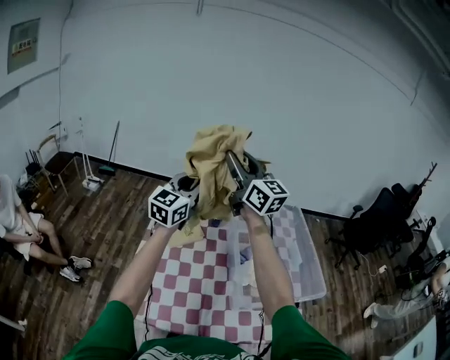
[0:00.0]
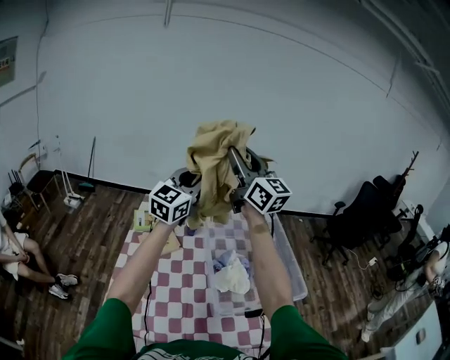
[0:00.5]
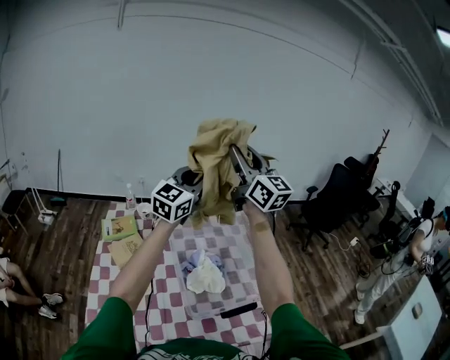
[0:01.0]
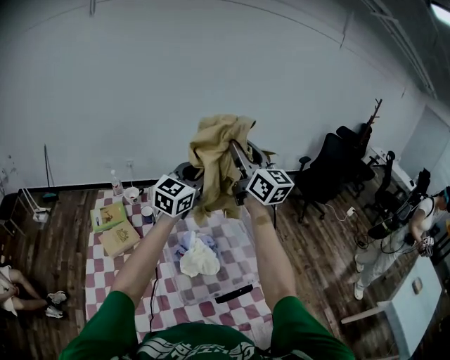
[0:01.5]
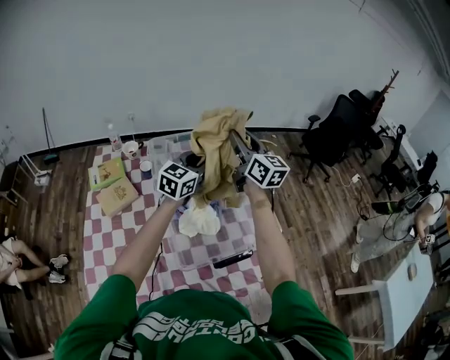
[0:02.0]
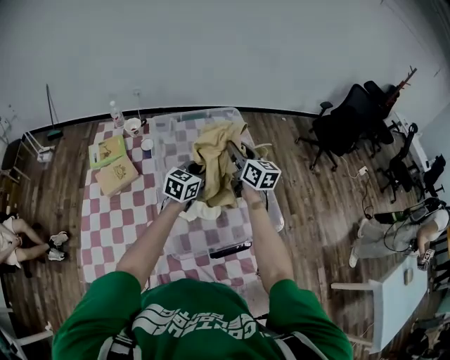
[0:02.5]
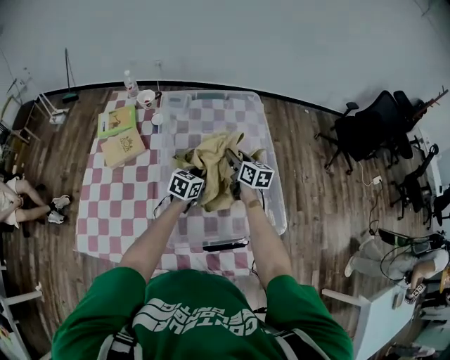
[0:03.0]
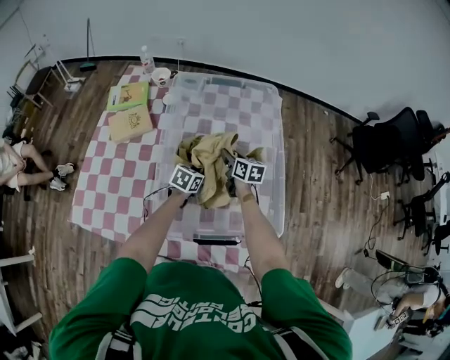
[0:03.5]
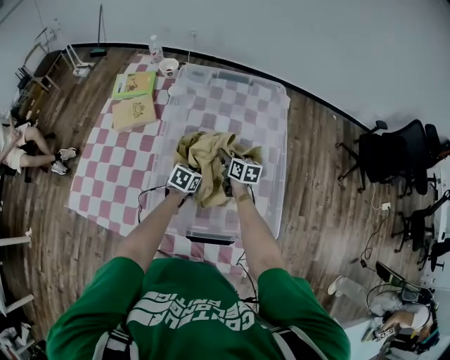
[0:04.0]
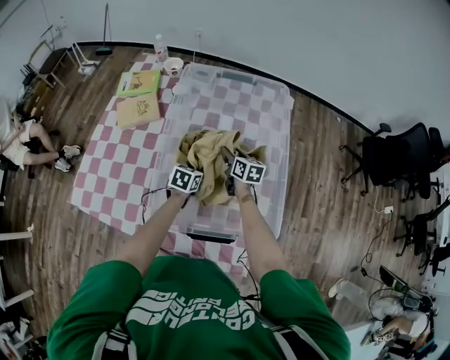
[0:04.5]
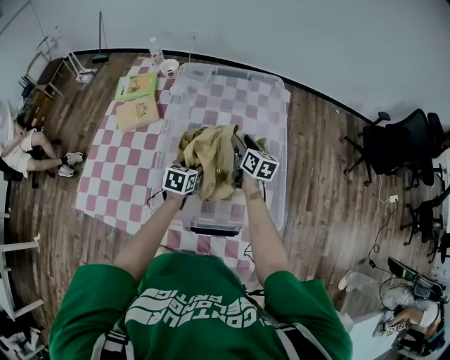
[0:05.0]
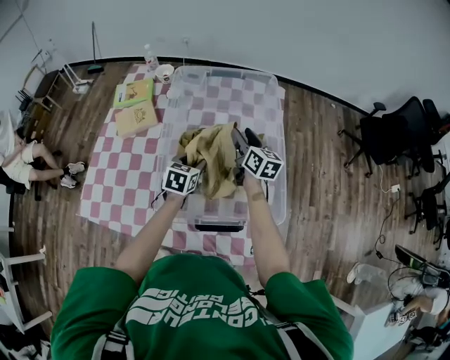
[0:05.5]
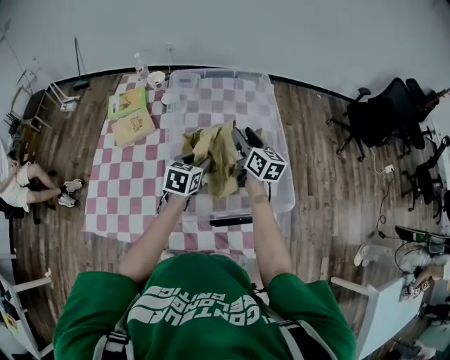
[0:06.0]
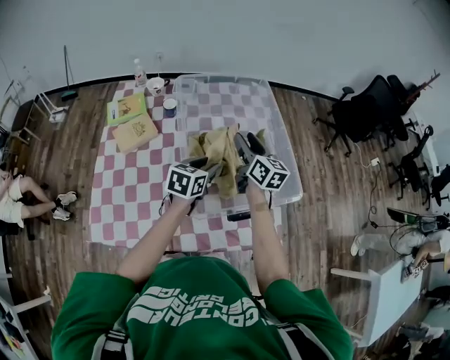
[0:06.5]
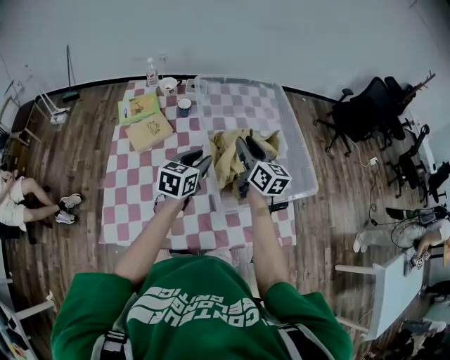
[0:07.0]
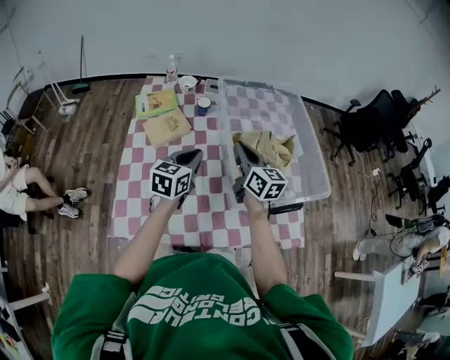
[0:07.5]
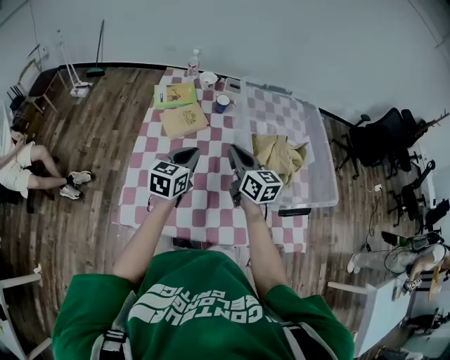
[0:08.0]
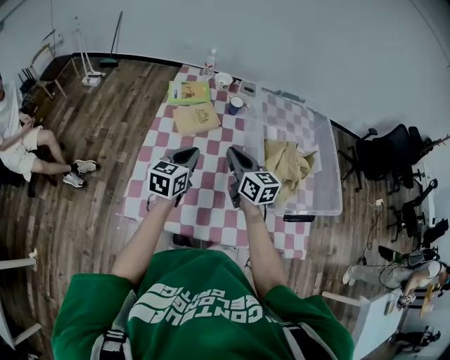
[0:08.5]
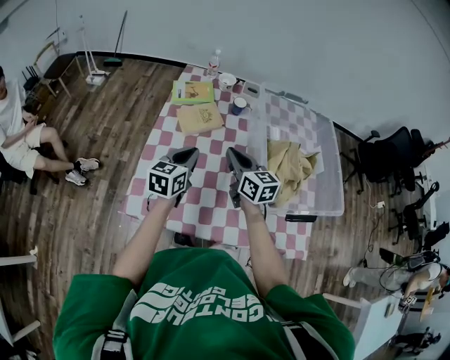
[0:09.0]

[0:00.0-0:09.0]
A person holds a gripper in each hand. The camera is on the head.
0:00.0 to 0:02.0: Both grippers travel together to the right, some 40 cm. The left gripper swivels some 30 degrees. Meanwhile the right gripper turns by about 30 degrees.
0:02.0 to 0:04.5: The two grippers go about 40 cm downward. The left gripper points its fingers roughly 40 degrees further downward, while the right gripper tilts its fingers approximately 40 degrees downward.
0:04.5 to 0:07.0: The right gripper shifts approximately 30 cm upward, backward and to the left, and changes its angle by about 30 degrees. The left gripper is displaced upward, to the left and backward by approximately 25 cm, and swivels about 30 degrees.
0:07.0 to 0:09.0: Both grippers move to the left, some 25 cm. The right gripper changes its angle by about 30 degrees, and closes.

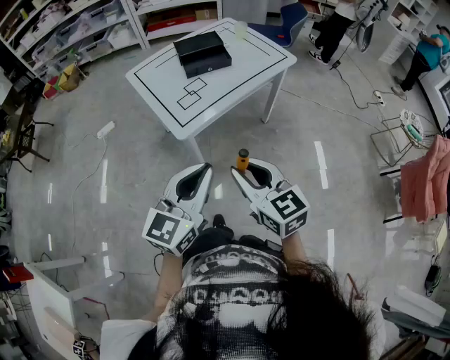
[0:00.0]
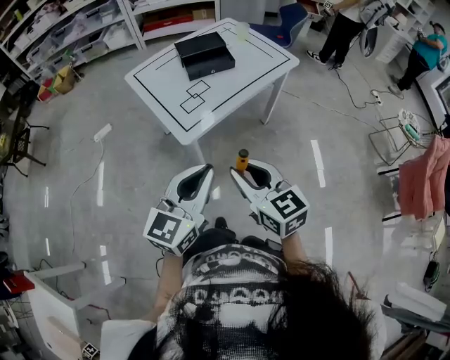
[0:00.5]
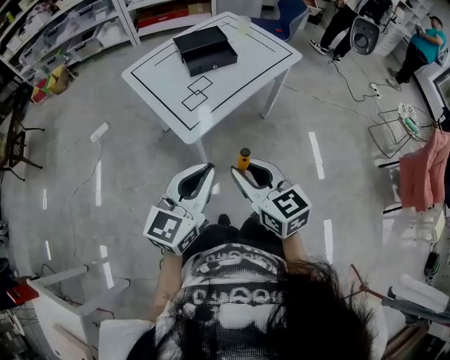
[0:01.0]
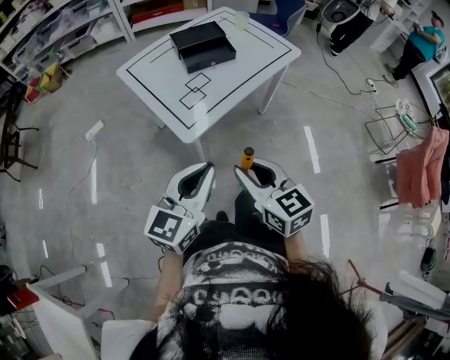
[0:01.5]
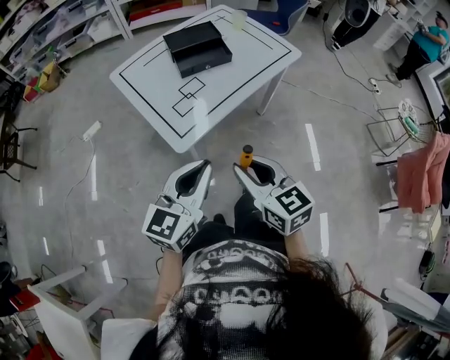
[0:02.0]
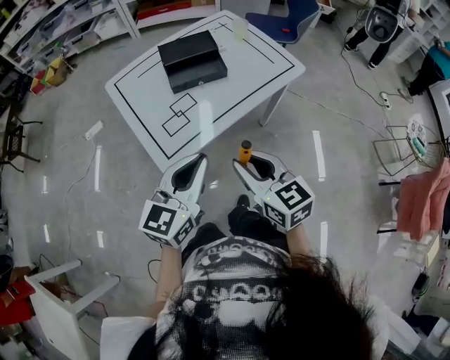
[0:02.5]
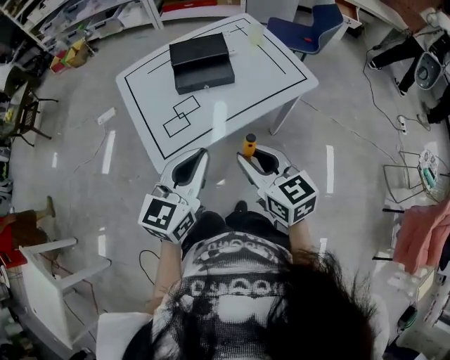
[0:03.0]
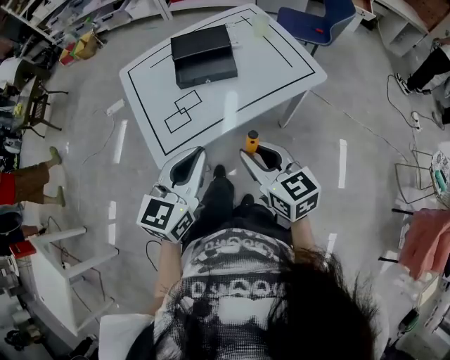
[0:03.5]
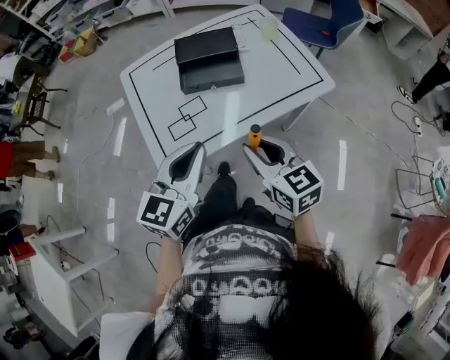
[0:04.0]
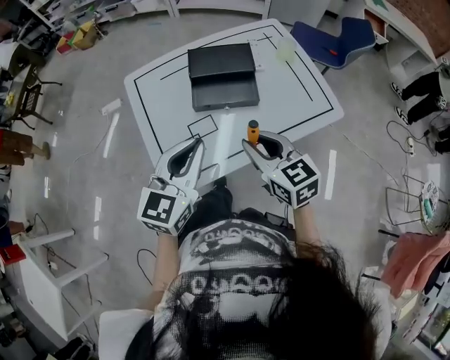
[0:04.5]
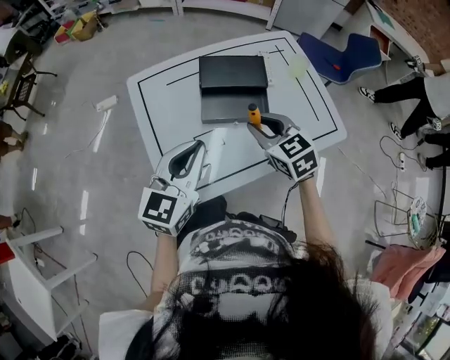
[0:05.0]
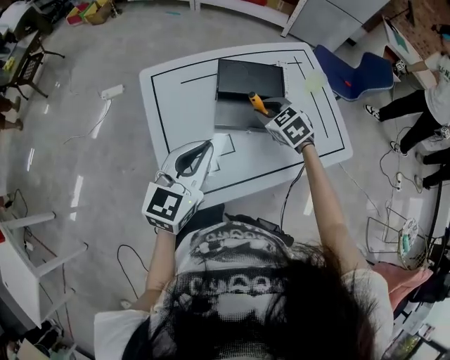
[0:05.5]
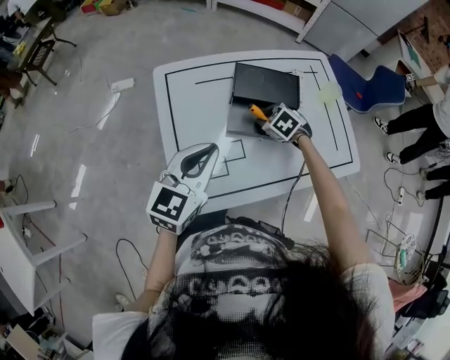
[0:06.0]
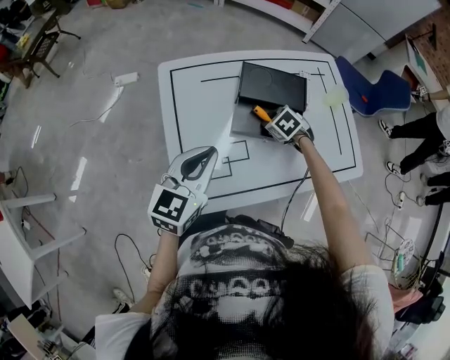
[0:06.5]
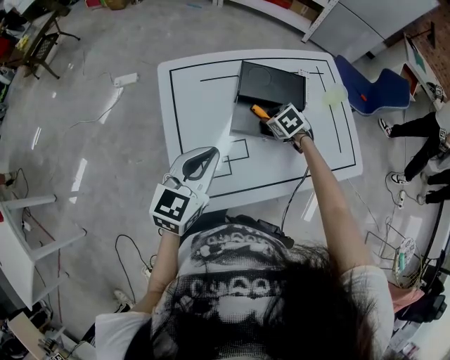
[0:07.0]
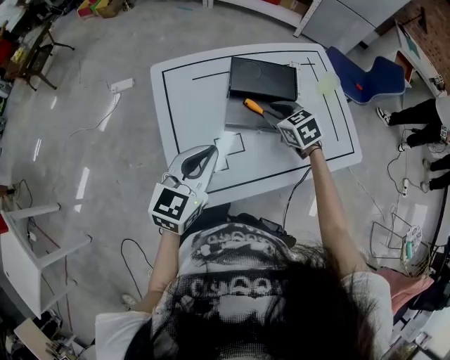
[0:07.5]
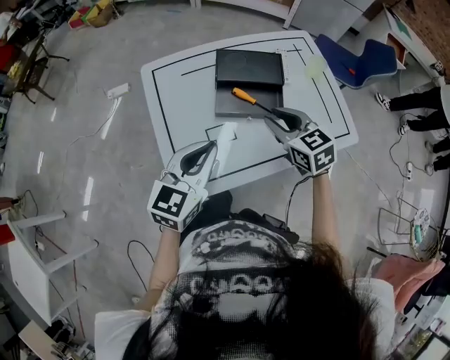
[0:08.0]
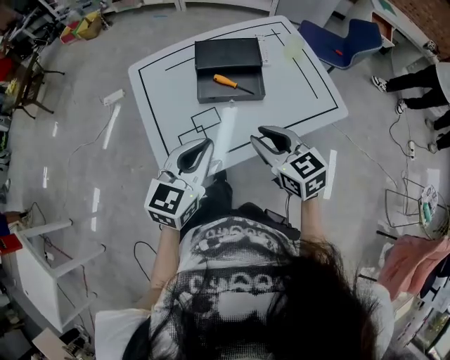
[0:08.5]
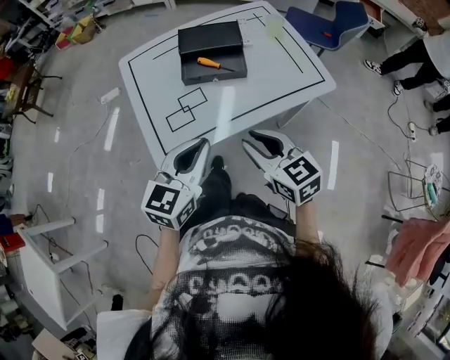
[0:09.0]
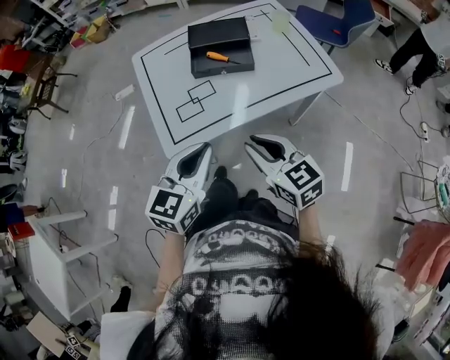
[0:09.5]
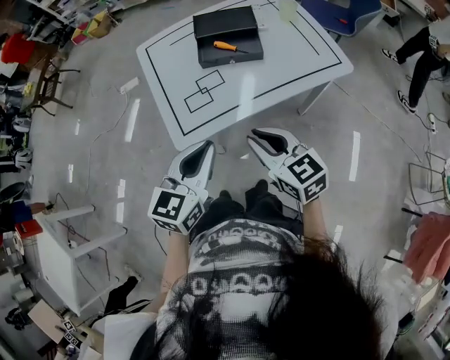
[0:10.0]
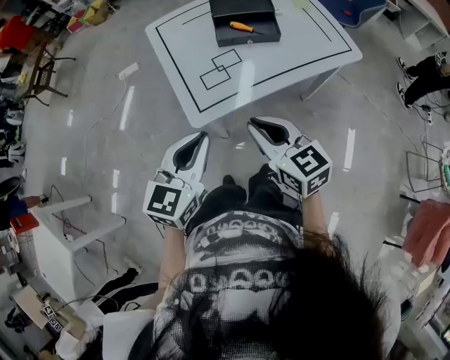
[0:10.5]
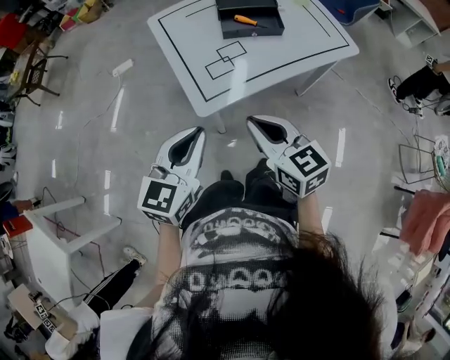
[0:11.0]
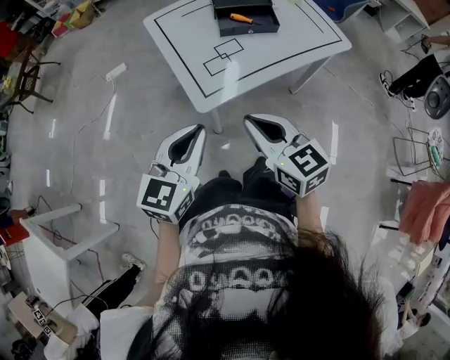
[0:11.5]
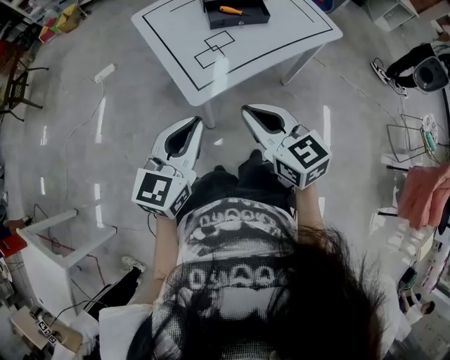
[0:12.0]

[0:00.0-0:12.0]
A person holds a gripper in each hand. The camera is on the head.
0:00.0 to 0:02.0: The left gripper travels forward and downward by about 15 cm. The right gripper heads forward, covering roughly 10 cm.
0:02.0 to 0:04.0: Both grippers travel together forward and to the right, about 25 cm. The left gripper turns by roughly 20 degrees.
0:04.0 to 0:06.0: The left gripper moves forward and to the left, some 25 cm. The right gripper heads forward and downward, covering approximately 40 cm, and angles its fingers downward, by about 50 degrees.
0:06.0 to 0:08.0: The right gripper travels upward and backward by about 20 cm, and angles its fingers upward, by approximately 30 degrees, while the left gripper is displaced backward by roughly 5 cm.
0:08.0 to 0:10.0: Both grippers travel together backward, about 25 cm.
0:10.0 to 0:12.0: The grippers both shift to the left and backward by some 20 cm.

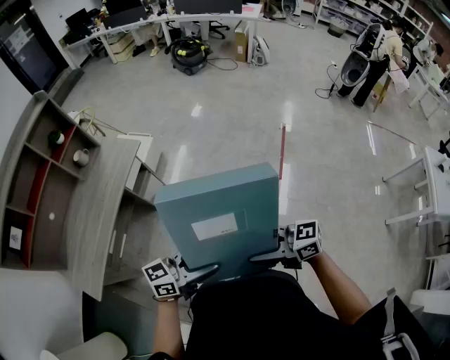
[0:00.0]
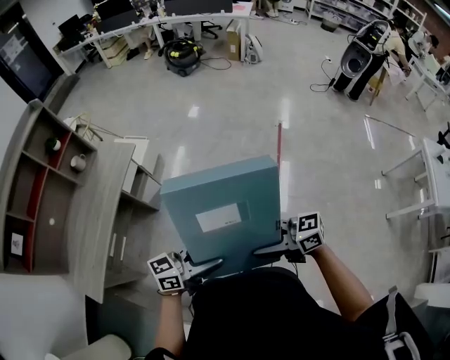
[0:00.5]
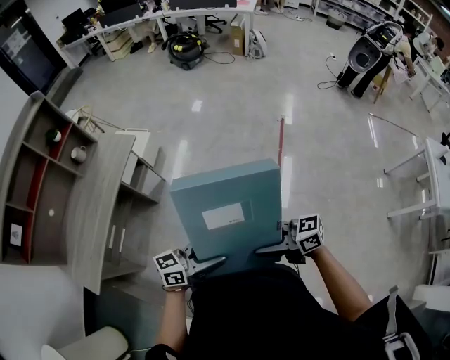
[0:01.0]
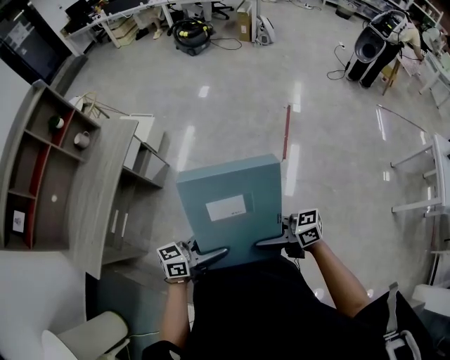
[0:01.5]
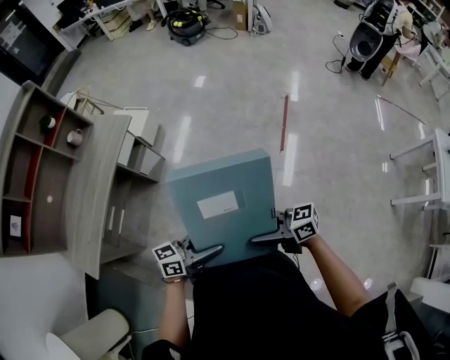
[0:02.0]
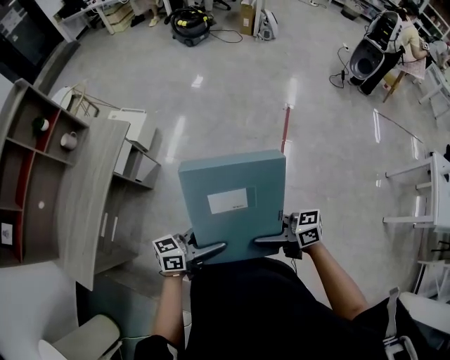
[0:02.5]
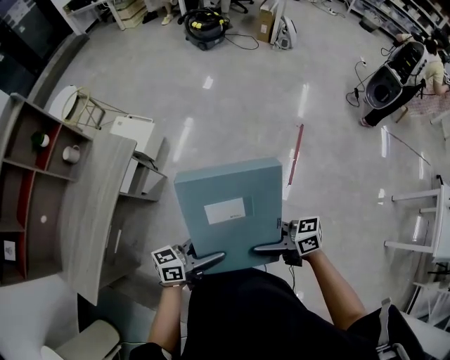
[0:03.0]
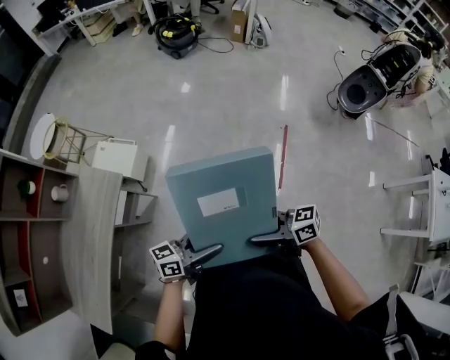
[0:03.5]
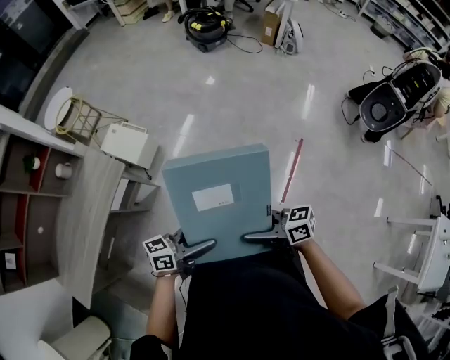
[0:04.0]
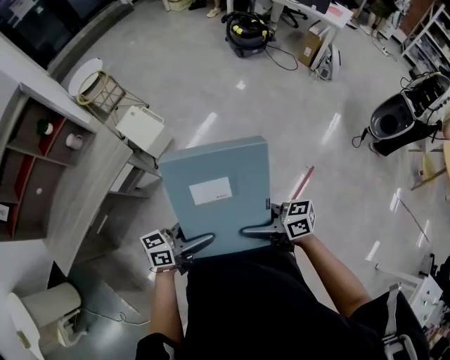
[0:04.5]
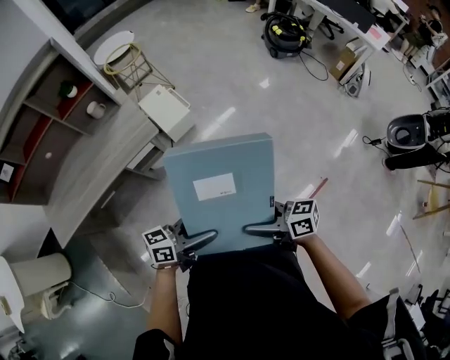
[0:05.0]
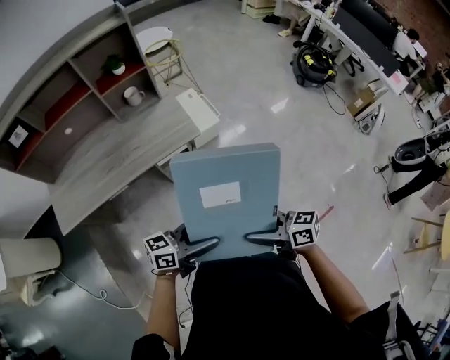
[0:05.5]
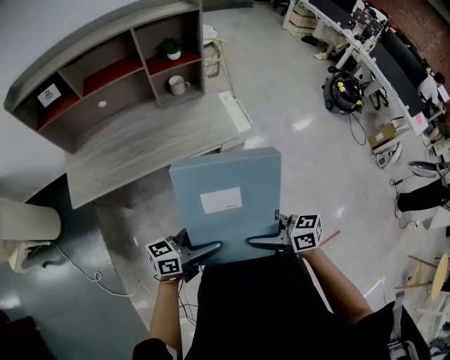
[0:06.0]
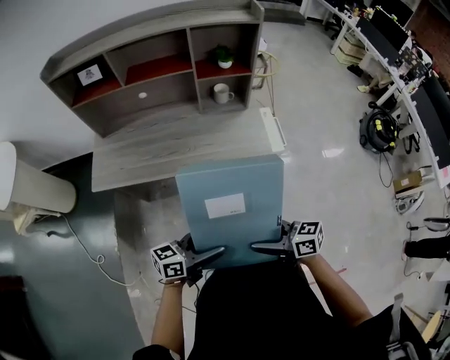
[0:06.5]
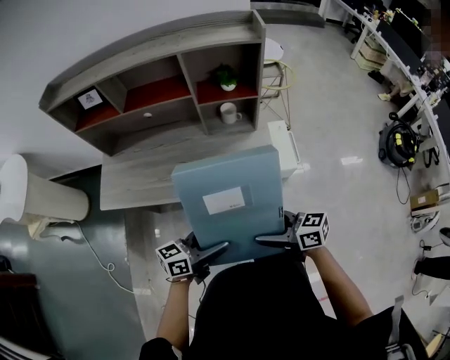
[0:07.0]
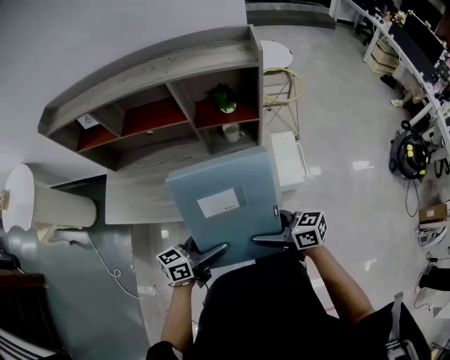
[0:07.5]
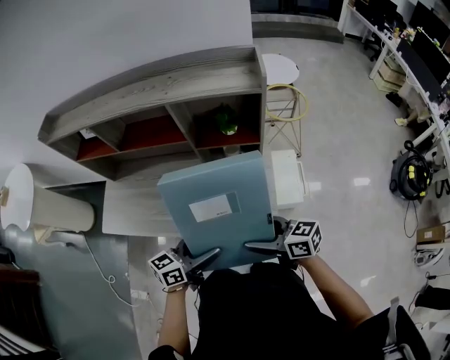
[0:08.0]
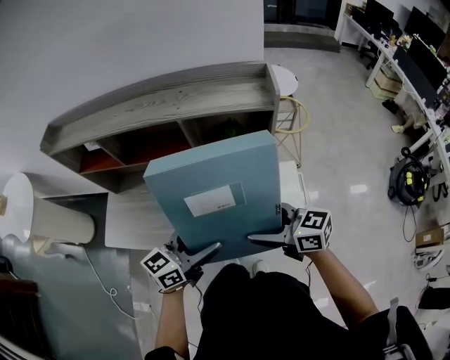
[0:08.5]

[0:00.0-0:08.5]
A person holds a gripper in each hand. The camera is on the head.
0:00.0 to 0:02.0: Both grippers travel together downward, roughly 10 cm.
0:02.0 to 0:04.0: The pair of grippers is taken roughly 50 cm.
0:04.0 to 0:06.5: The right gripper moves some 40 cm, and rotates roughly 50 degrees. The left gripper shifts by approximately 40 cm, and rotates approximately 60 degrees.
0:06.5 to 0:08.5: The left gripper ends up roughly 40 cm from where it was, and turns by roughly 30 degrees, while the right gripper moves some 40 cm.
